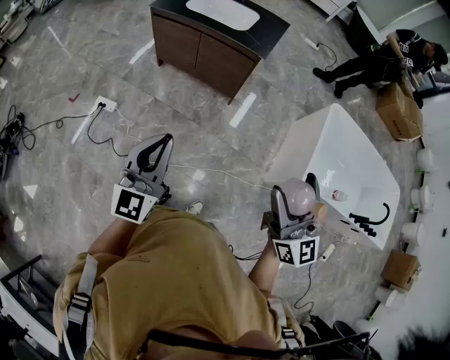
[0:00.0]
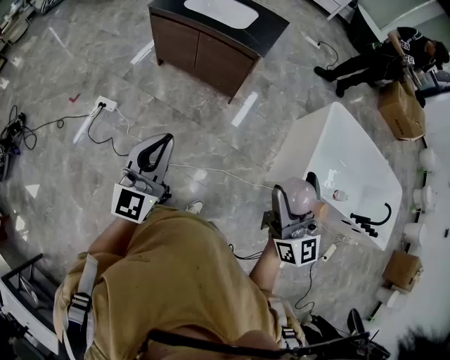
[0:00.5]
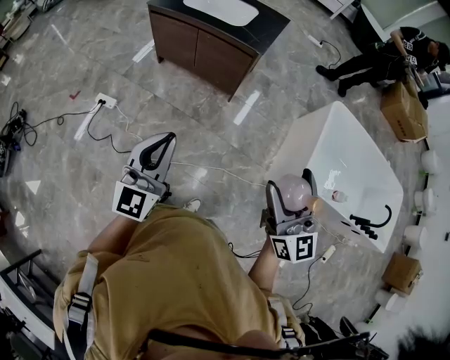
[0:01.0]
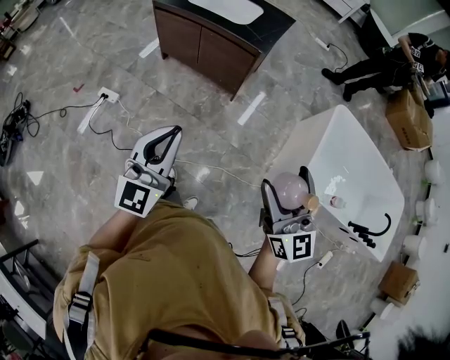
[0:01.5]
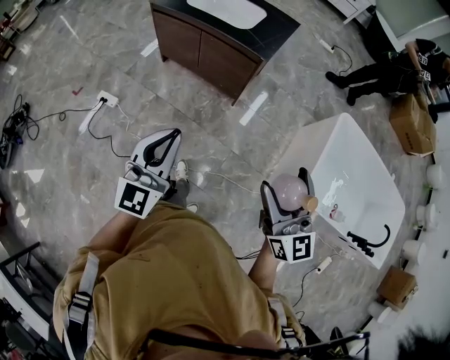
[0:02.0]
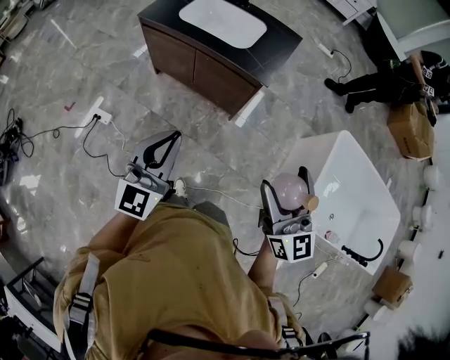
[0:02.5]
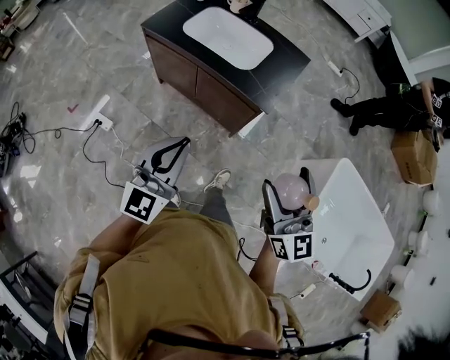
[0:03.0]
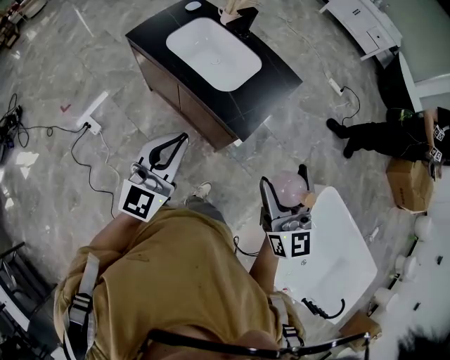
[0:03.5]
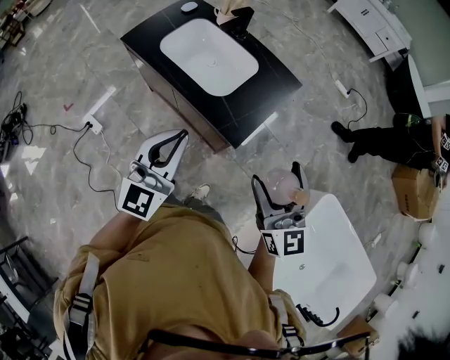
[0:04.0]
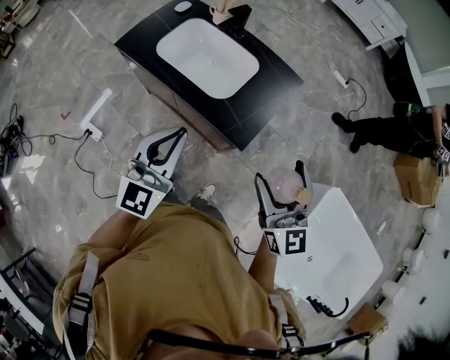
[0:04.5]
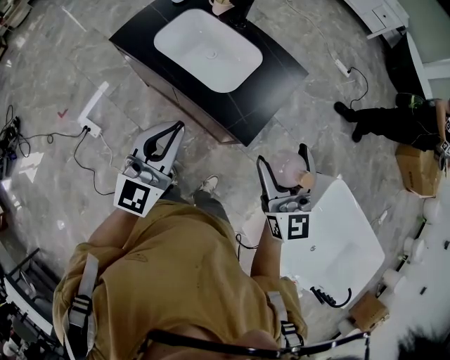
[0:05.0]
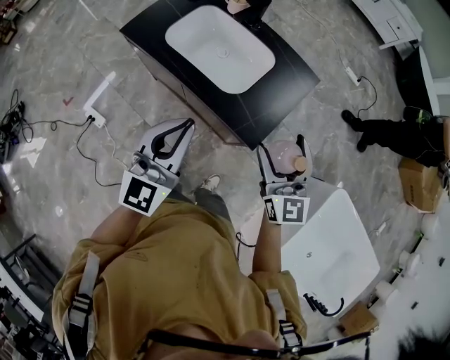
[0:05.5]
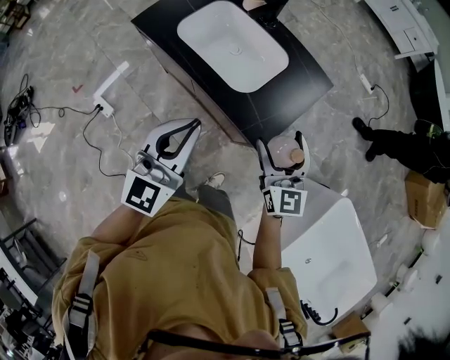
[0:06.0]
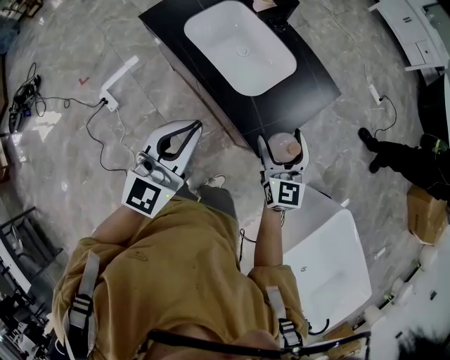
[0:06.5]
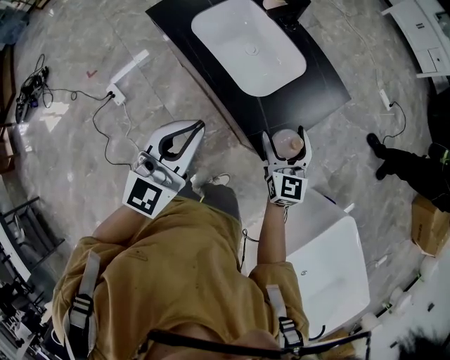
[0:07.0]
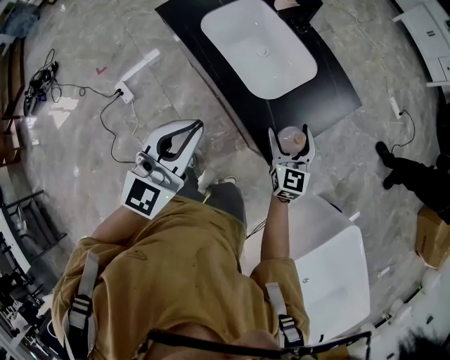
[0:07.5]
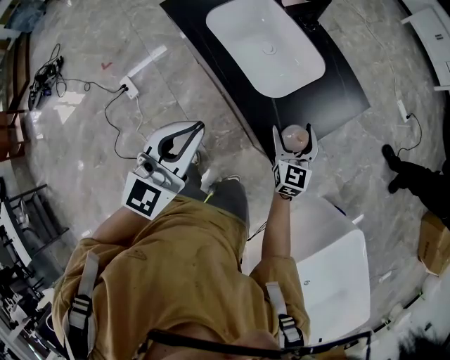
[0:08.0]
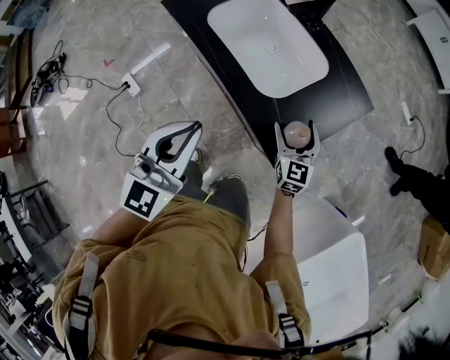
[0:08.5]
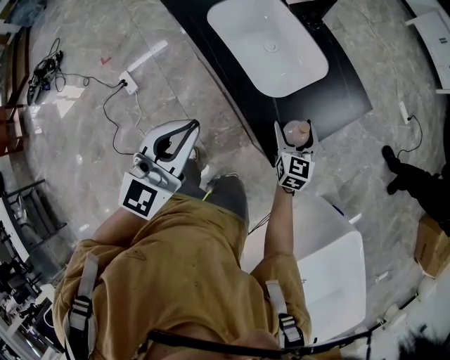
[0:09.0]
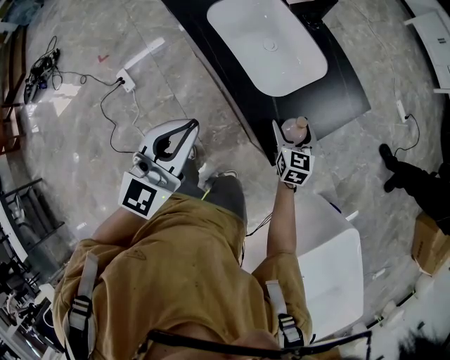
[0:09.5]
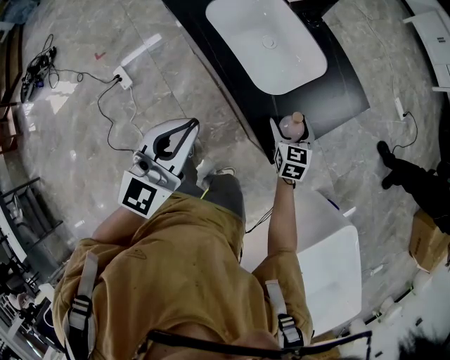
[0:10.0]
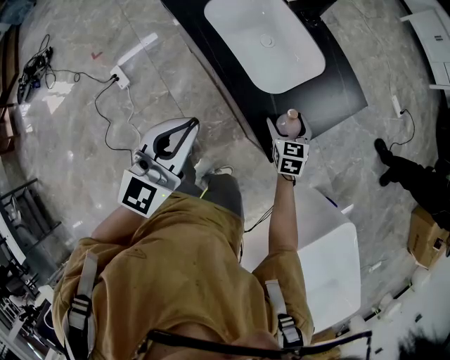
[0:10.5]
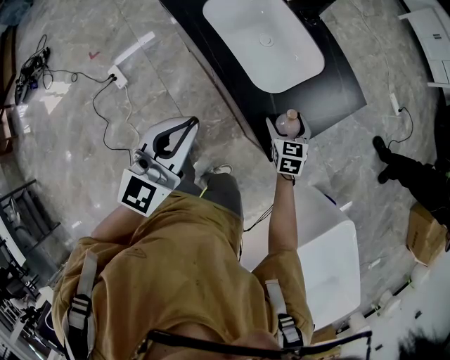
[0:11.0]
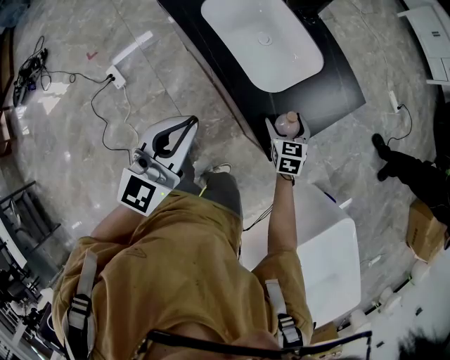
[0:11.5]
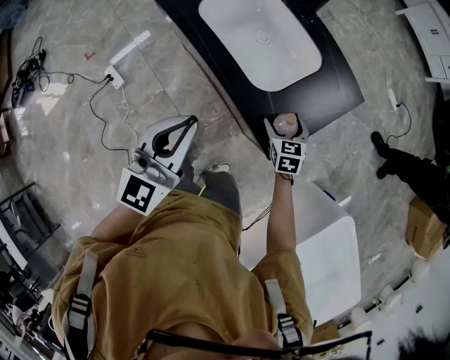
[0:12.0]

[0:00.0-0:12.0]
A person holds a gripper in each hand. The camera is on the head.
0:00.0 to 0:02.0: The right gripper travels forward by some 10 cm, while the left gripper shifts approximately 10 cm forward and to the right.
0:02.0 to 0:04.0: Both grippers move forward, about 40 cm.
0:04.0 to 0:06.0: The left gripper shifts by about 5 cm, while the right gripper travels forward, downward and to the left by some 15 cm.
0:06.0 to 0:08.0: The left gripper shifts by roughly 5 cm, while the right gripper moves downward and forward, about 20 cm.
0:08.0 to 0:10.0: The right gripper is displaced downward by some 5 cm.
0:10.0 to 0:12.0: There are only small adjustments of the grippers.

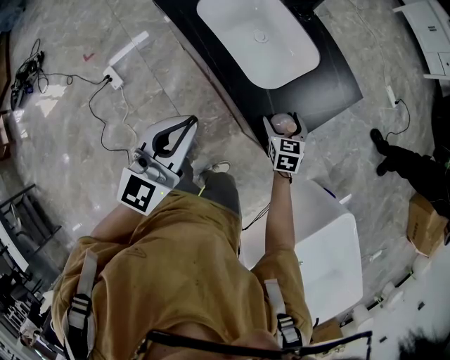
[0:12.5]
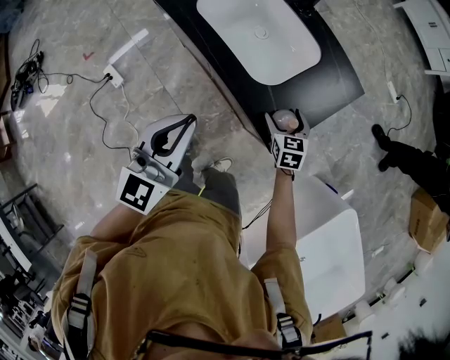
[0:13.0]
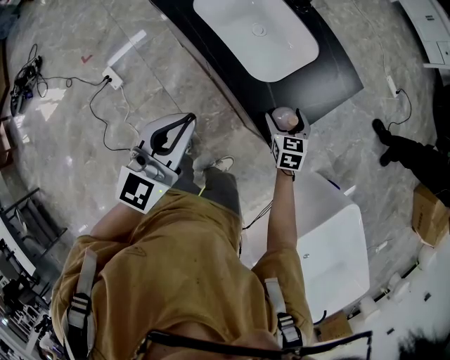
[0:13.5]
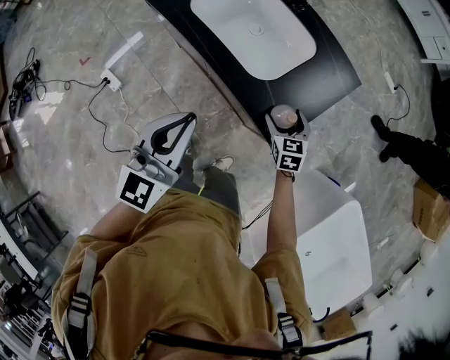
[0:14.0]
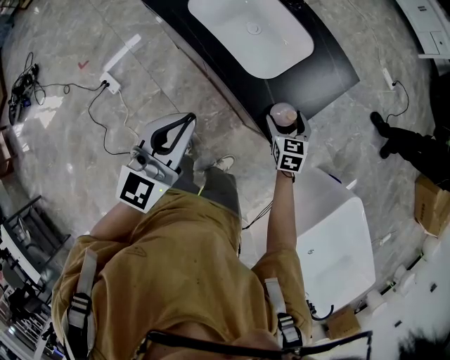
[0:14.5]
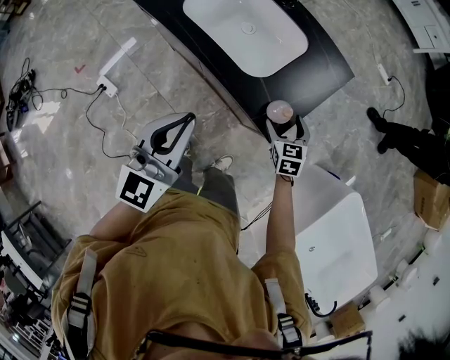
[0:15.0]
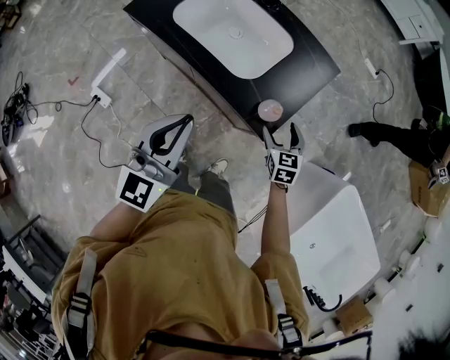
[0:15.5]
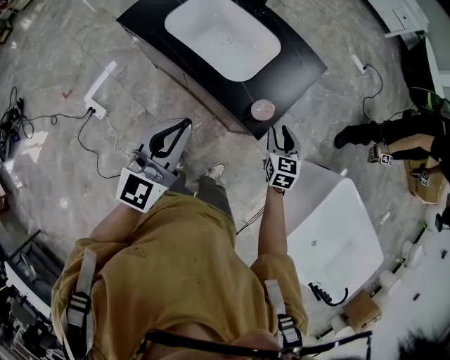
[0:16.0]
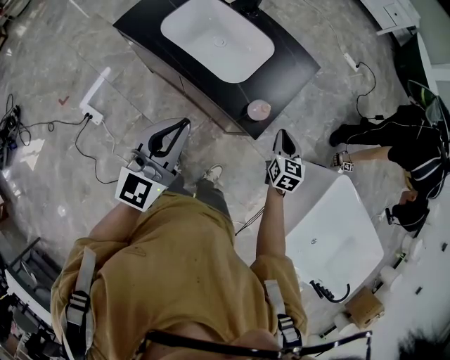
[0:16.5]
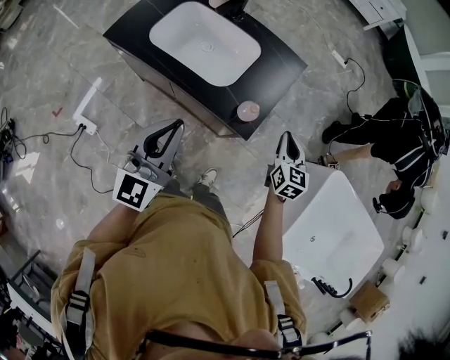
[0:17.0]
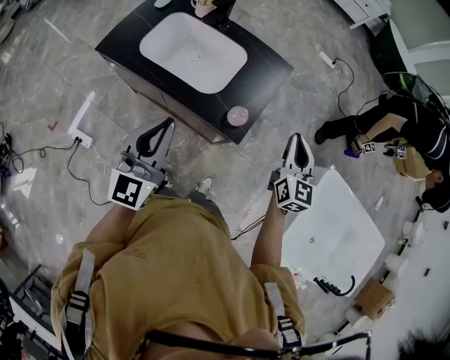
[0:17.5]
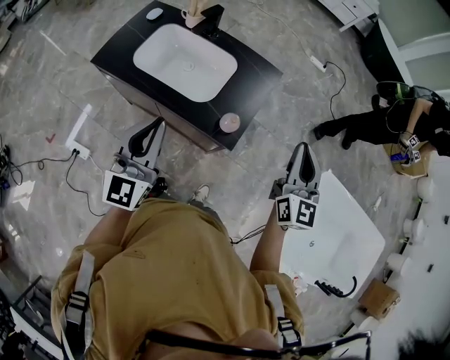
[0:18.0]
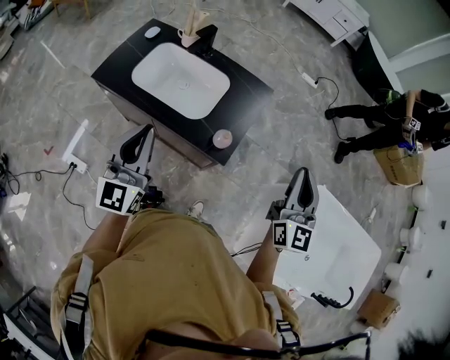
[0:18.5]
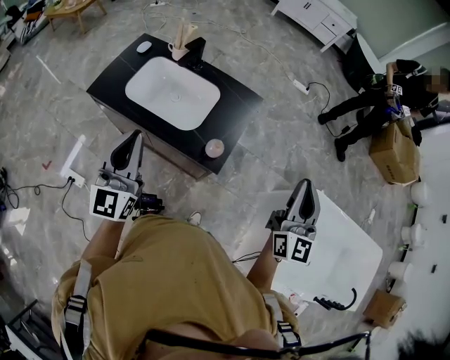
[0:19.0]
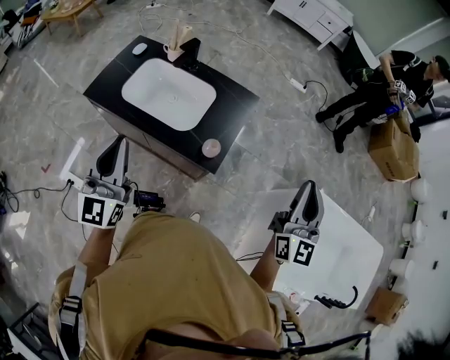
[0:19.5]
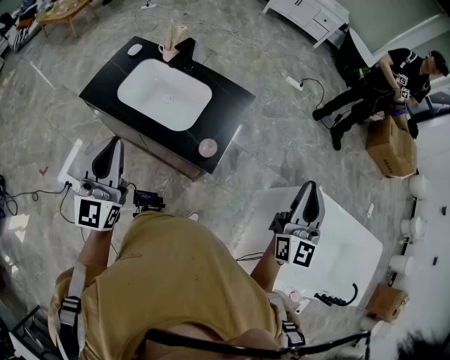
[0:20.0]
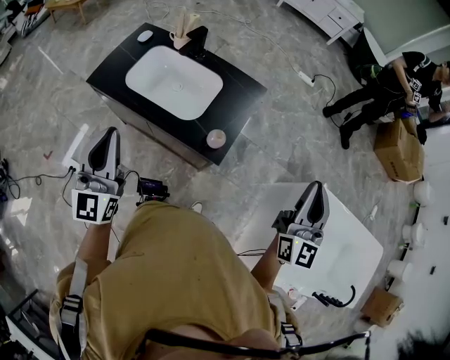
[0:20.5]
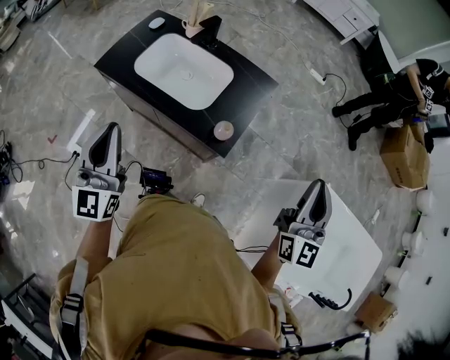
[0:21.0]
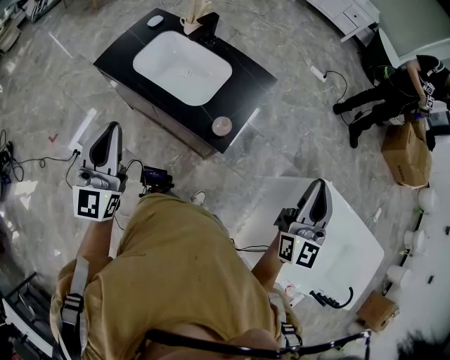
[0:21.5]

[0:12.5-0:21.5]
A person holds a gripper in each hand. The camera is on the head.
0:12.5 to 0:14.5: The grippers make only small movements.
0:14.5 to 0:17.0: The right gripper shifts roughly 20 cm upward, to the right and backward, rotates some 30 degrees, and closes its fingers.
0:17.0 to 0:19.5: The left gripper moves upward and to the left, some 10 cm. Meanwhile the right gripper moves upward, some 25 cm, and angles its fingers upward, by some 30 degrees.
0:19.5 to 0:21.5: The grippers make only small movements.

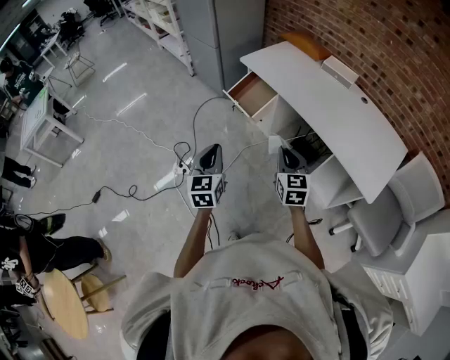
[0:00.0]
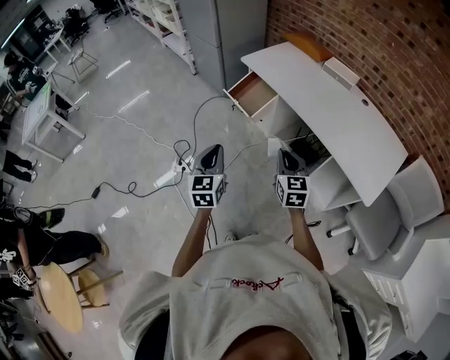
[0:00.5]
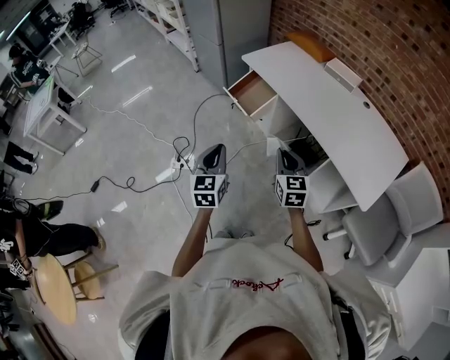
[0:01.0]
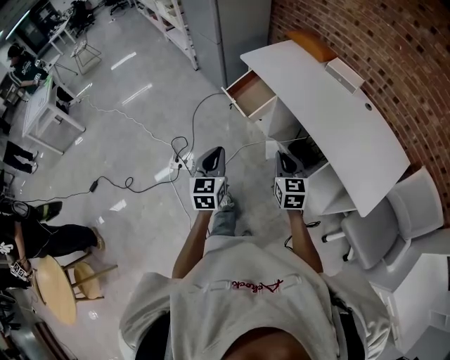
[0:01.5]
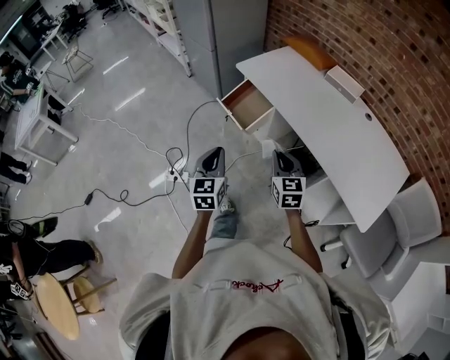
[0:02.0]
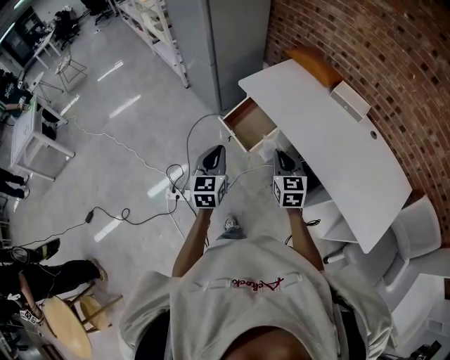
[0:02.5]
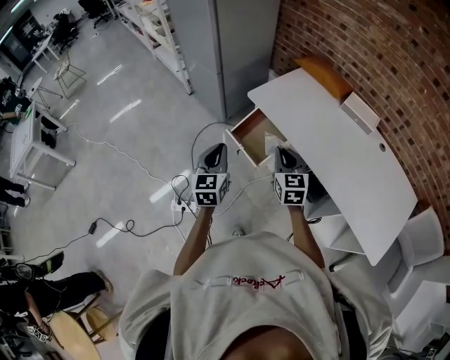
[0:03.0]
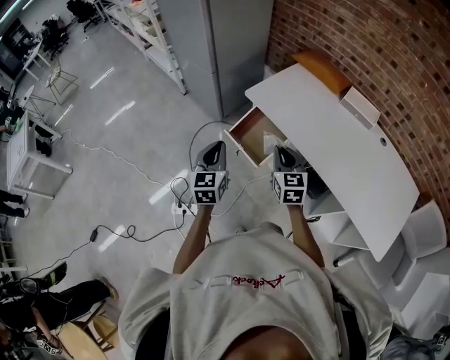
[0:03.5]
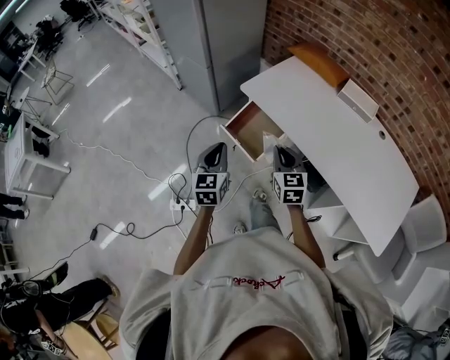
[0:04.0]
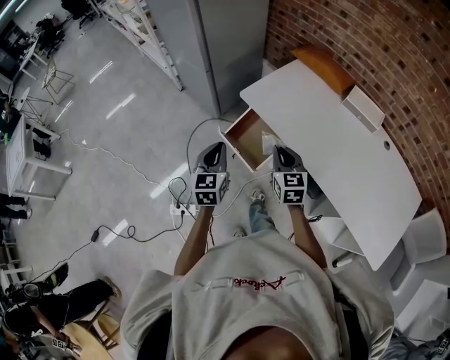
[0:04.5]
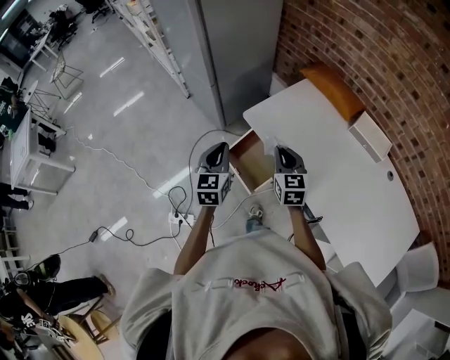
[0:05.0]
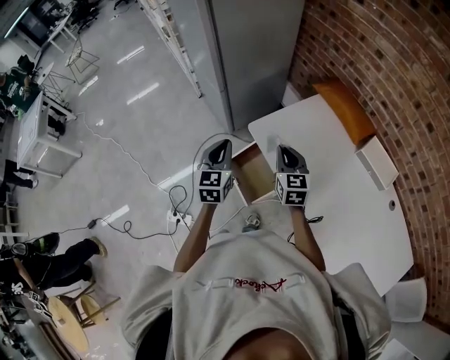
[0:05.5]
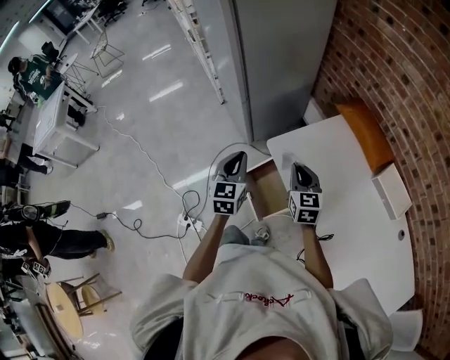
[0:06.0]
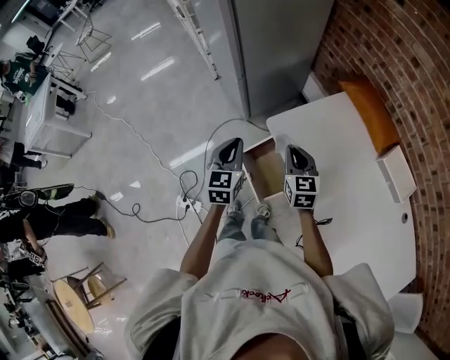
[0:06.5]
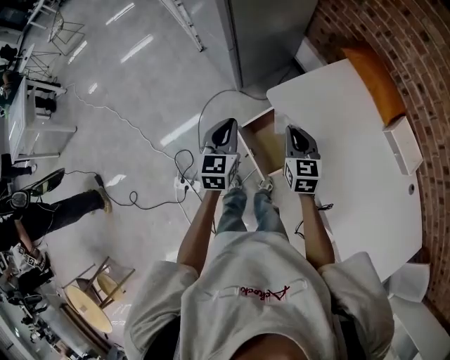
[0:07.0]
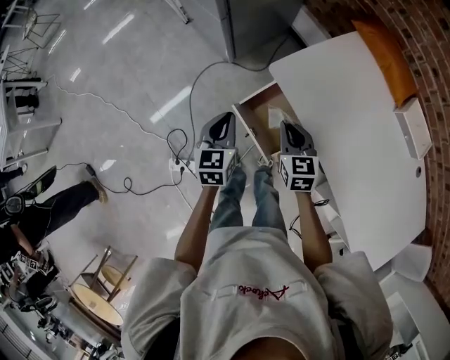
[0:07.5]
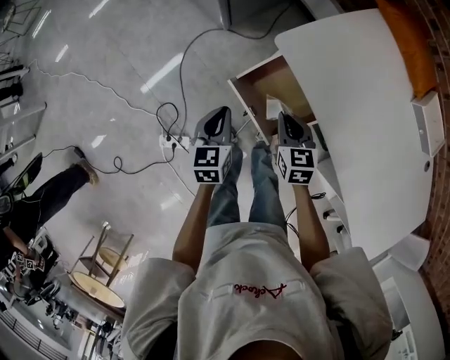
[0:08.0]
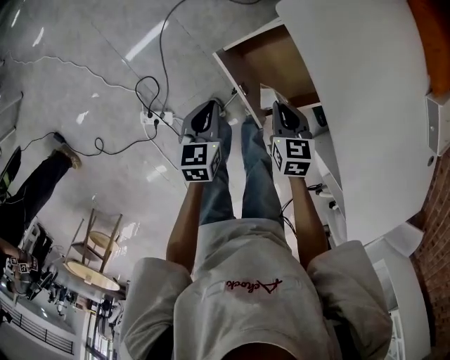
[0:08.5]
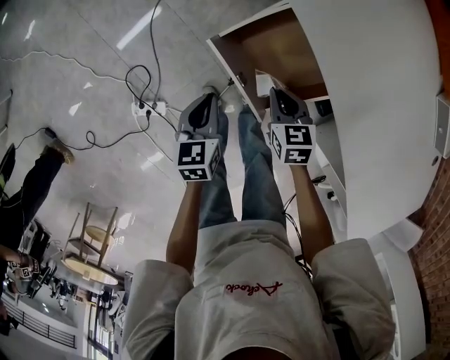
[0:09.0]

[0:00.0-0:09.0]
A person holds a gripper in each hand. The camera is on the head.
0:00.0 to 0:02.0: The left gripper goes about 15 cm forward and to the right; the right gripper goes some 10 cm forward.
0:02.0 to 0:04.5: The grippers both shift forward by about 30 cm.
0:04.5 to 0:07.0: Both grippers move forward, about 20 cm.
0:07.0 to 0:09.0: The two grippers go about 30 cm downward. The left gripper turns by some 30 degrees, while the right gripper changes its angle by approximately 30 degrees.
